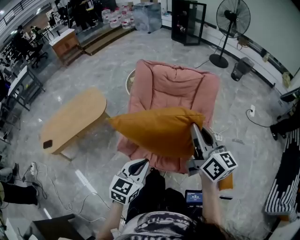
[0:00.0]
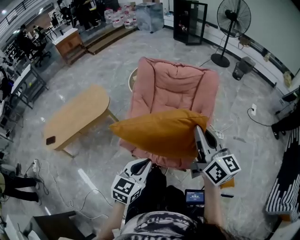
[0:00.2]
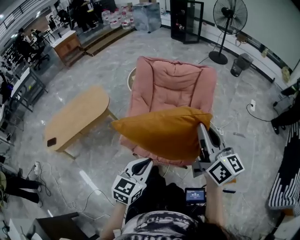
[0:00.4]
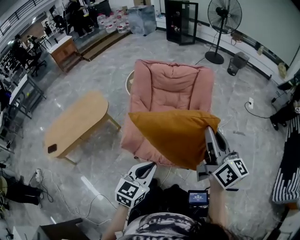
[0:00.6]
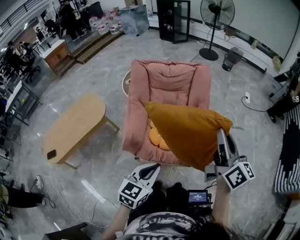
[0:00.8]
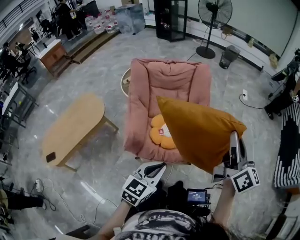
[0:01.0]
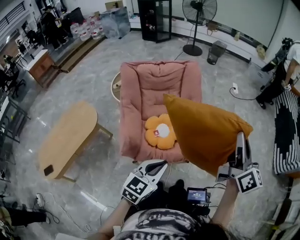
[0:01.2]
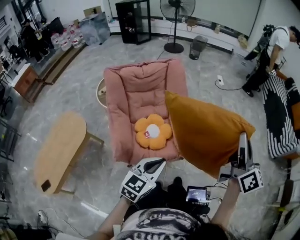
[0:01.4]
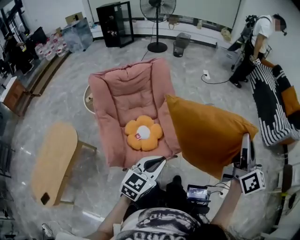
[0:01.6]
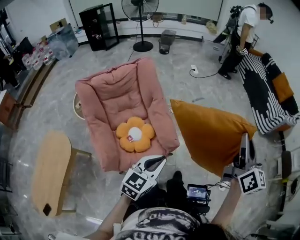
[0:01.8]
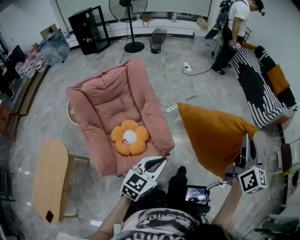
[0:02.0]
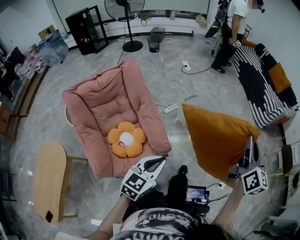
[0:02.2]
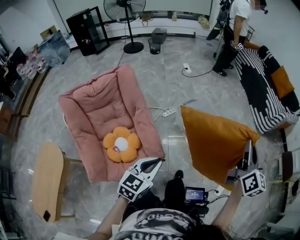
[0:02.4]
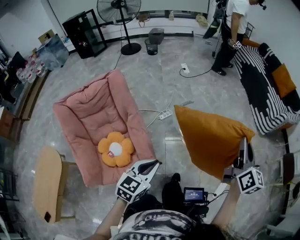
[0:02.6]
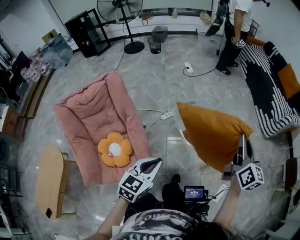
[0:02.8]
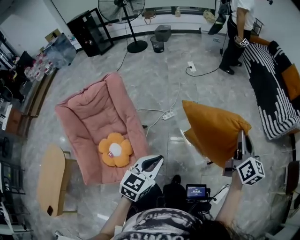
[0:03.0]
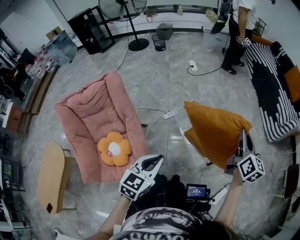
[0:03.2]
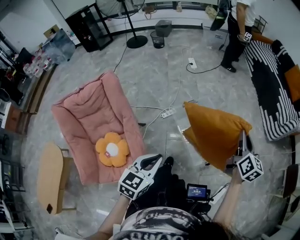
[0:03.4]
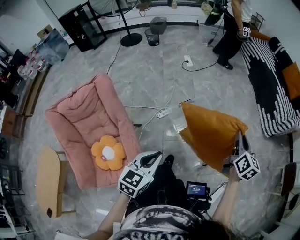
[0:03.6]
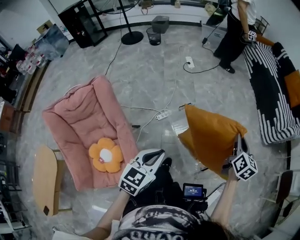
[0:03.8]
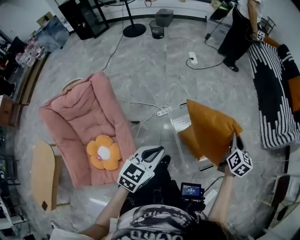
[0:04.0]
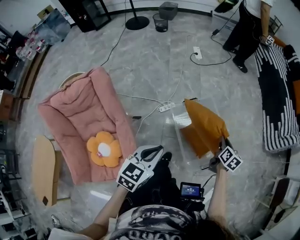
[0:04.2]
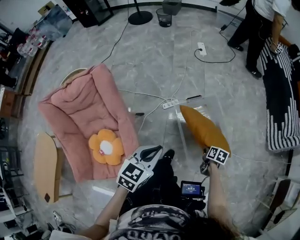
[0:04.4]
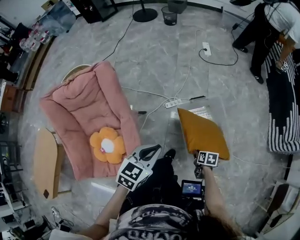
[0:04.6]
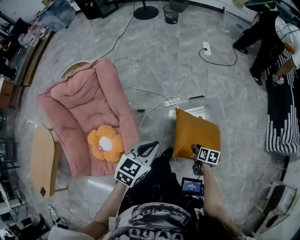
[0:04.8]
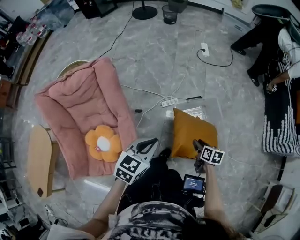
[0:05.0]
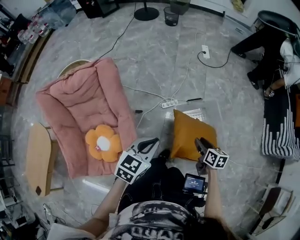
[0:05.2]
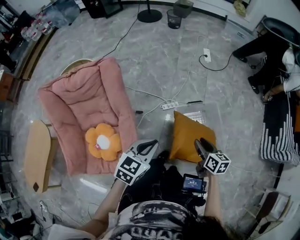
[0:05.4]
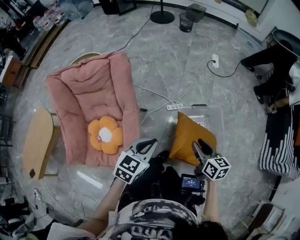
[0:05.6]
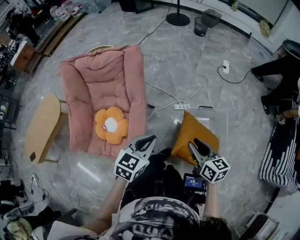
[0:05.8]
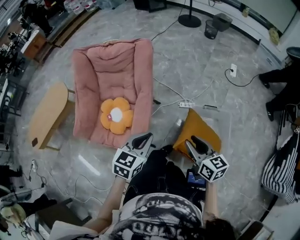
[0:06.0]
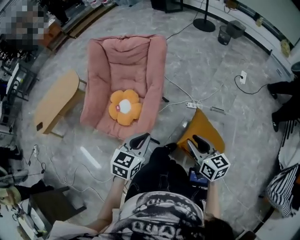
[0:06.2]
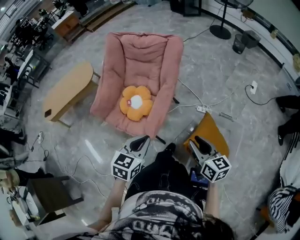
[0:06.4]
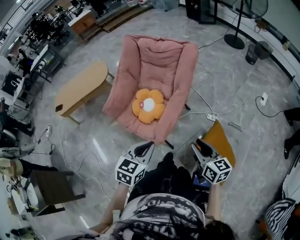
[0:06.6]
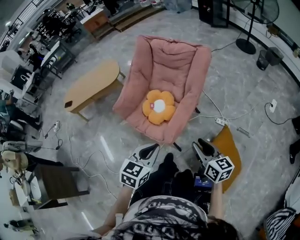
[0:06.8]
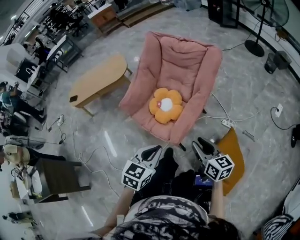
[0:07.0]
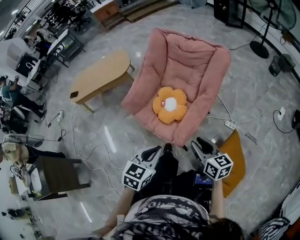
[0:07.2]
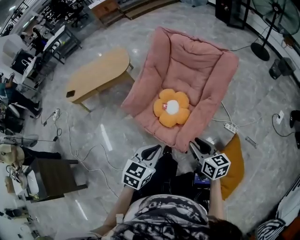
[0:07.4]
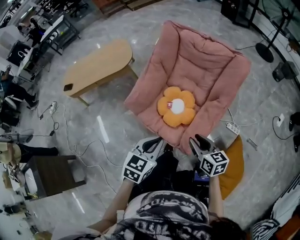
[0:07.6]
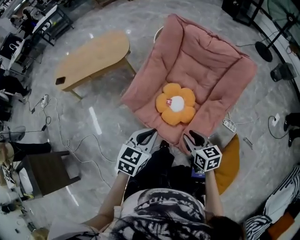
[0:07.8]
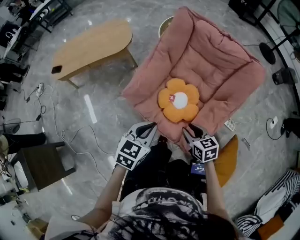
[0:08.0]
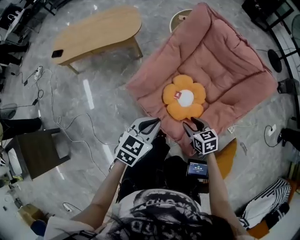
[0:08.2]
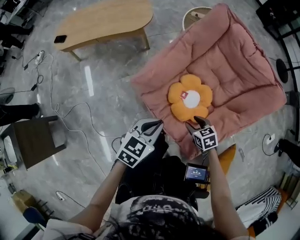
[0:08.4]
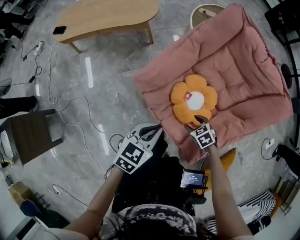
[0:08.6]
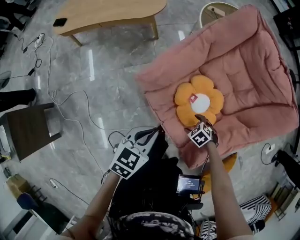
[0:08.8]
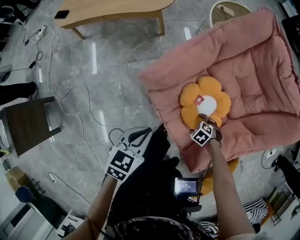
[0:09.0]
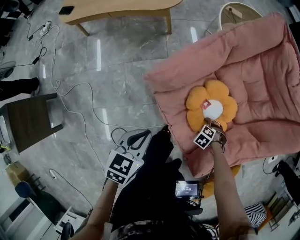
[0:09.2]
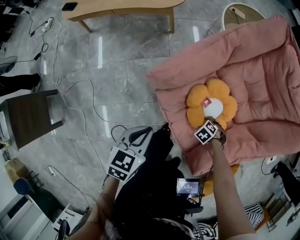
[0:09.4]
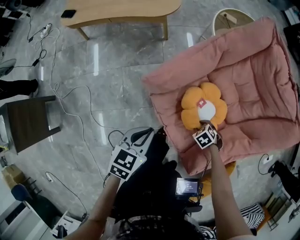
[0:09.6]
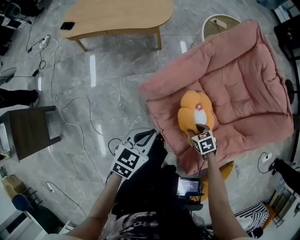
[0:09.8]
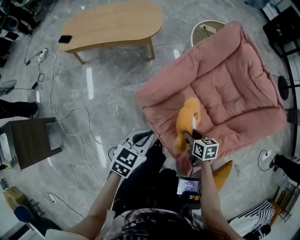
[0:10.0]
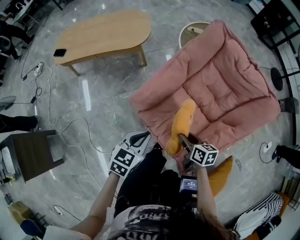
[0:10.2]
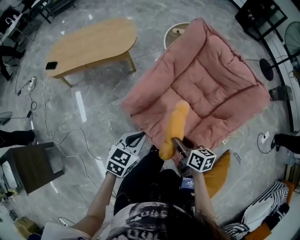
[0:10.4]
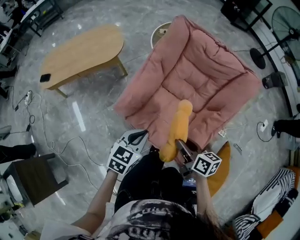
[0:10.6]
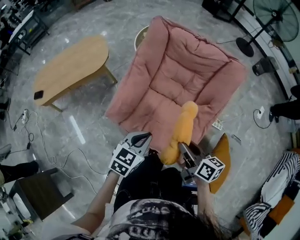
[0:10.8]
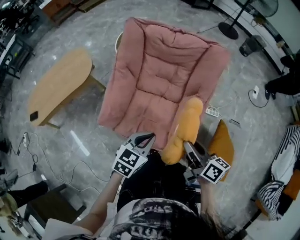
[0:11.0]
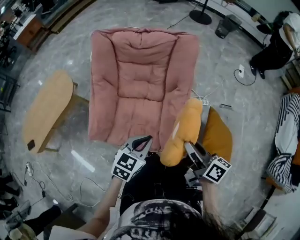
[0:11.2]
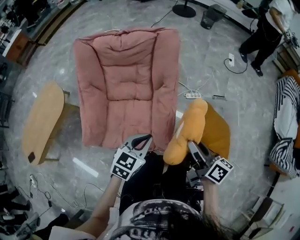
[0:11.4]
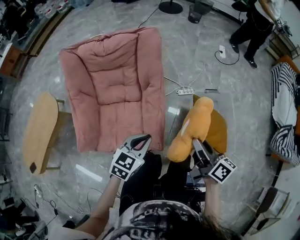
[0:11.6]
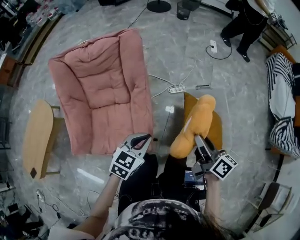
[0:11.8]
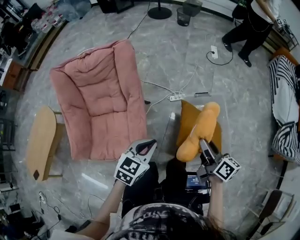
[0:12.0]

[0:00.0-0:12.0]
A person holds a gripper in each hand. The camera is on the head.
0.0 to 1.6 s: The left gripper ends up approximately 10 cm from where it was, and rotates some 40 degrees. The right gripper moves roughly 30 cm, and turns by about 60 degrees.
1.6 to 3.0 s: Both grippers move forward and to the right, some 35 cm.
3.0 to 4.4 s: The right gripper goes approximately 40 cm downward, and tips its fingers downward by some 60 degrees. The left gripper travels forward and downward by roughly 20 cm.
4.4 to 6.0 s: The left gripper shifts by some 10 cm, and rotates roughly 30 degrees. The right gripper moves upward, approximately 25 cm, and tips its fingers upward by some 40 degrees.
6.0 to 7.6 s: The right gripper moves about 30 cm, and turns by some 30 degrees; the left gripper ends up some 30 cm from where it was, and rotates approximately 30 degrees.
7.6 to 9.0 s: The left gripper changes place by roughly 25 cm, and changes its angle by some 30 degrees. The right gripper shifts roughly 35 cm downward, angles its fingers downward, by approximately 50 degrees, and opens.
9.0 to 10.4 s: The left gripper travels upward by approximately 10 cm. The right gripper is displaced upward by approximately 30 cm, tips its fingers upward by some 50 degrees, and closes its fingers.
10.4 to 12.0 s: Both grippers are carried approximately 50 cm. The right gripper changes its angle by about 70 degrees. Meanwhile the left gripper changes its angle by approximately 50 degrees.

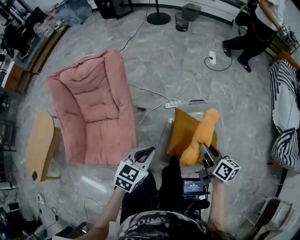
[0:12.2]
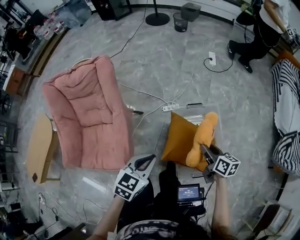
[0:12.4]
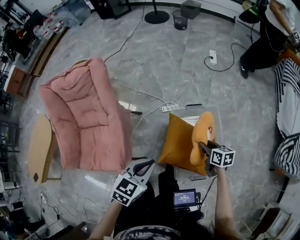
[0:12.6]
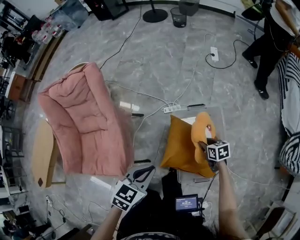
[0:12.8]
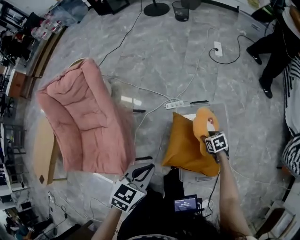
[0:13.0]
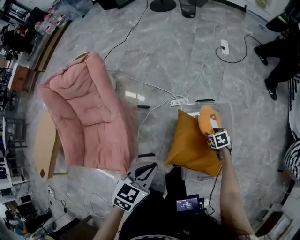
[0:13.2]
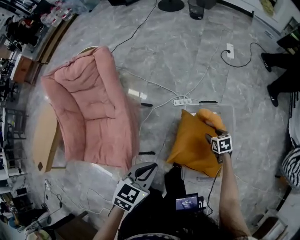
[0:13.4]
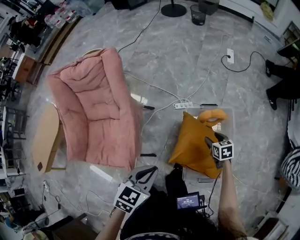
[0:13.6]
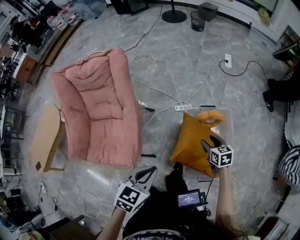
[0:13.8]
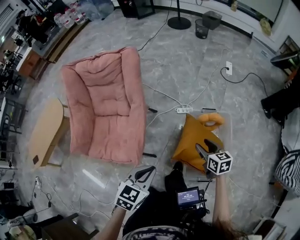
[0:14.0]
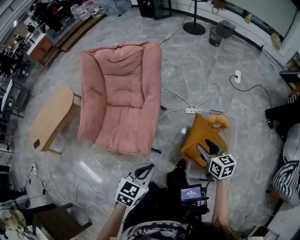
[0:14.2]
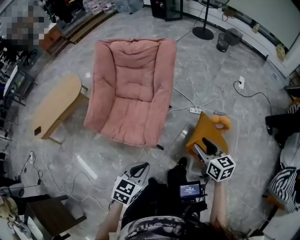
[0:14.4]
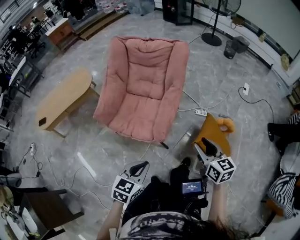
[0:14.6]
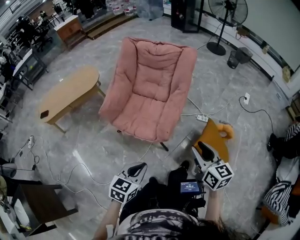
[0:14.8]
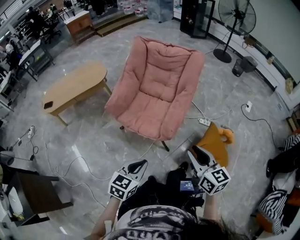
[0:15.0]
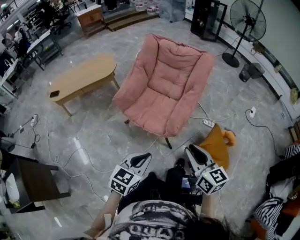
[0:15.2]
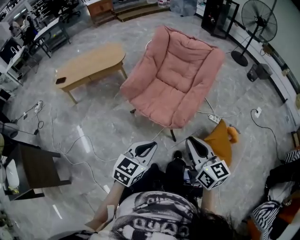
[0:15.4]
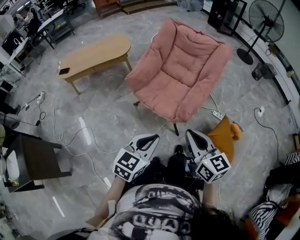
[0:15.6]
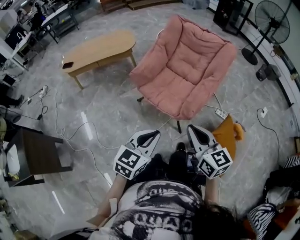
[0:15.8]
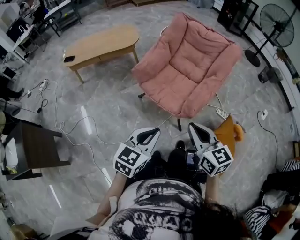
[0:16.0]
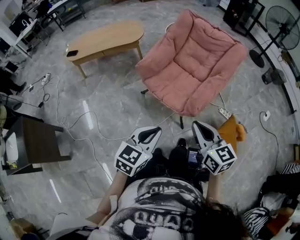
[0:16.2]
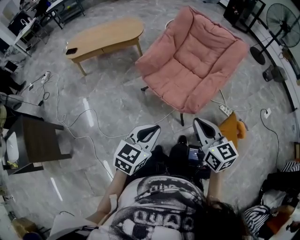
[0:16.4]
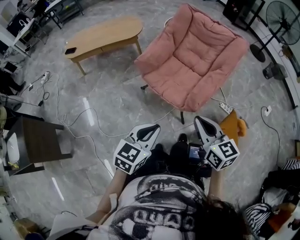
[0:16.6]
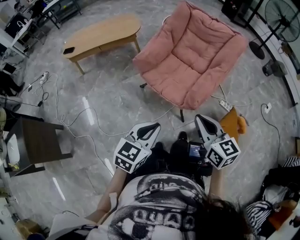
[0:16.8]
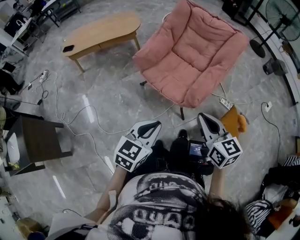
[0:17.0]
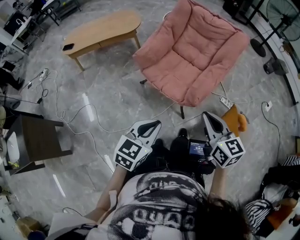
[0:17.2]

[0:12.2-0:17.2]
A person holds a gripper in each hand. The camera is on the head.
12.2 to 13.8 s: The left gripper reaches roughly 10 cm to the right, then returns. Meanwhile the right gripper travels downward and forward by roughly 20 cm, rotates some 40 degrees, and opens.
13.8 to 15.6 s: The left gripper changes place by approximately 40 cm, and swivels approximately 40 degrees. The right gripper shifts by roughly 60 cm, angles its fingers upward, by some 40 degrees, and closes its fingers.
15.6 to 17.2 s: The right gripper changes place by about 5 cm.

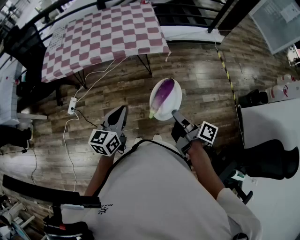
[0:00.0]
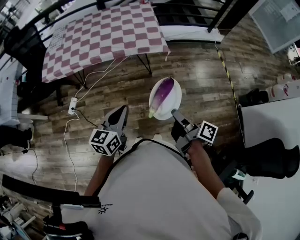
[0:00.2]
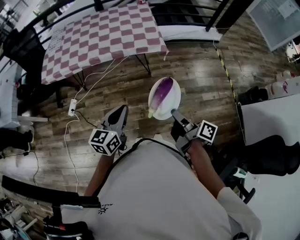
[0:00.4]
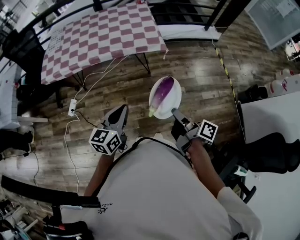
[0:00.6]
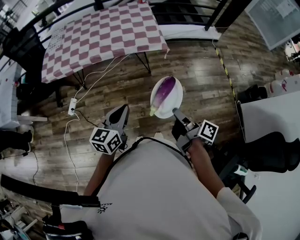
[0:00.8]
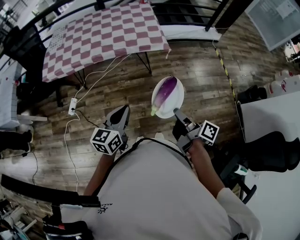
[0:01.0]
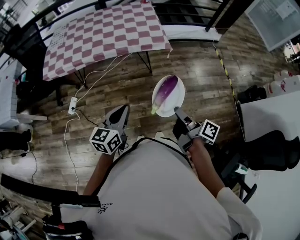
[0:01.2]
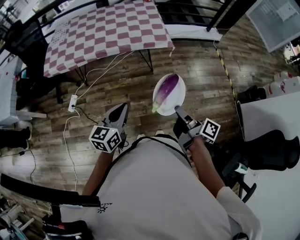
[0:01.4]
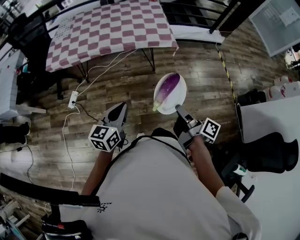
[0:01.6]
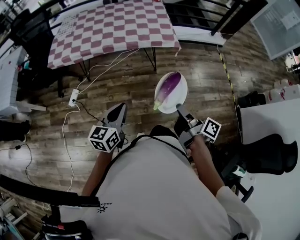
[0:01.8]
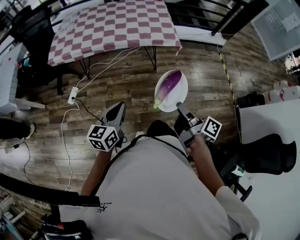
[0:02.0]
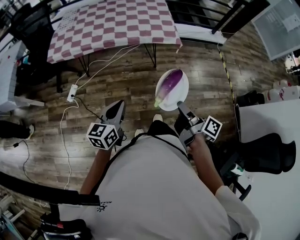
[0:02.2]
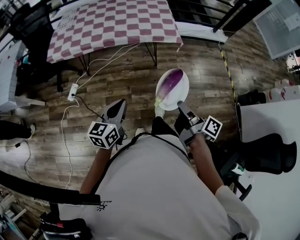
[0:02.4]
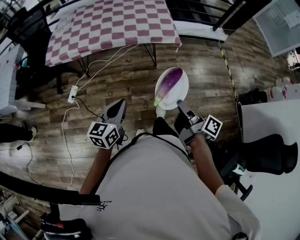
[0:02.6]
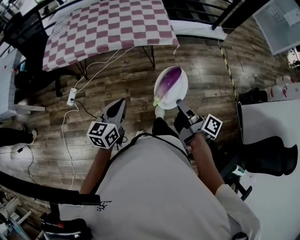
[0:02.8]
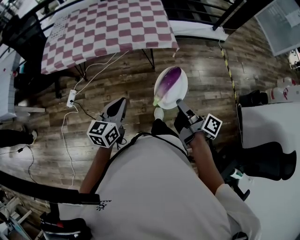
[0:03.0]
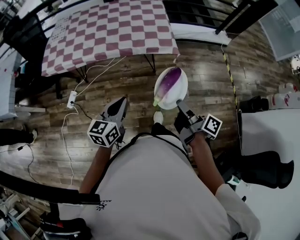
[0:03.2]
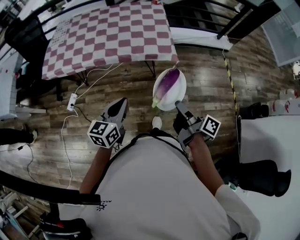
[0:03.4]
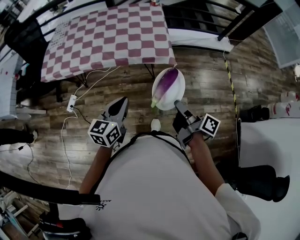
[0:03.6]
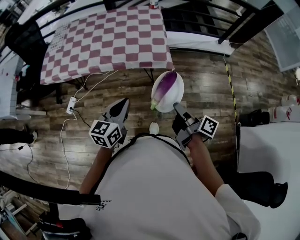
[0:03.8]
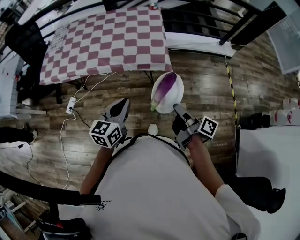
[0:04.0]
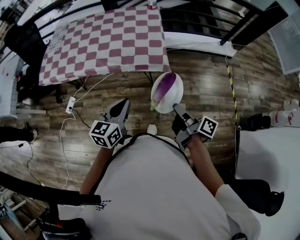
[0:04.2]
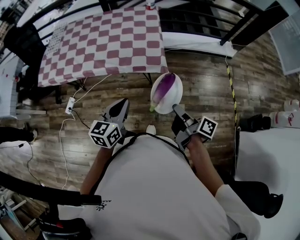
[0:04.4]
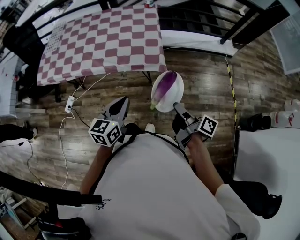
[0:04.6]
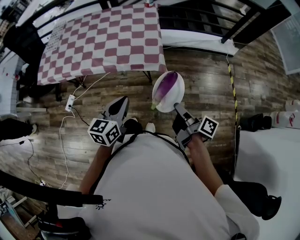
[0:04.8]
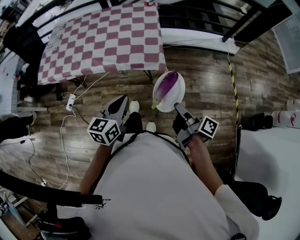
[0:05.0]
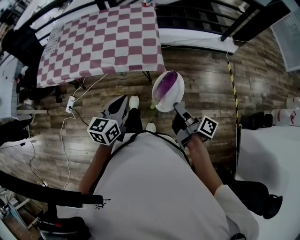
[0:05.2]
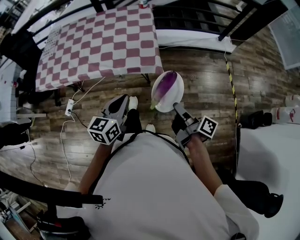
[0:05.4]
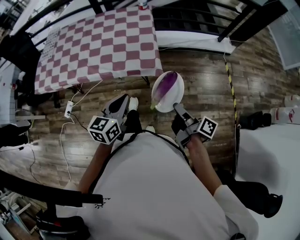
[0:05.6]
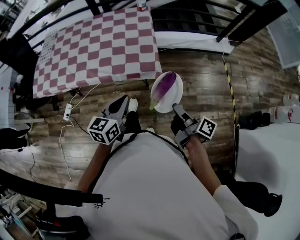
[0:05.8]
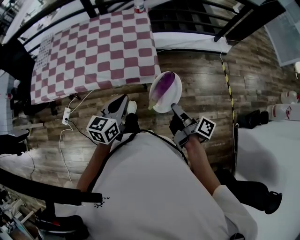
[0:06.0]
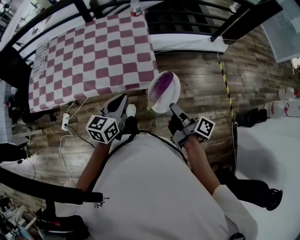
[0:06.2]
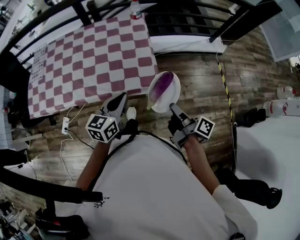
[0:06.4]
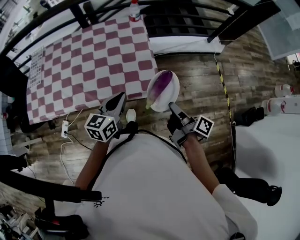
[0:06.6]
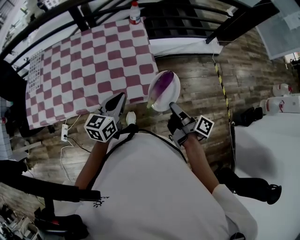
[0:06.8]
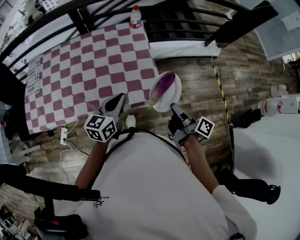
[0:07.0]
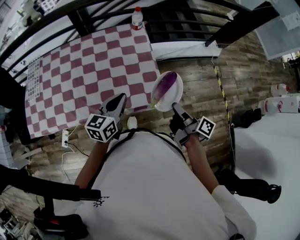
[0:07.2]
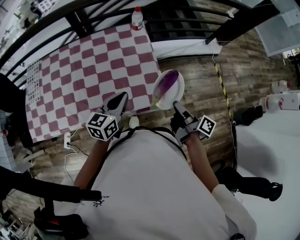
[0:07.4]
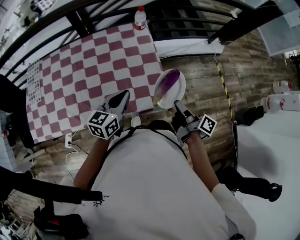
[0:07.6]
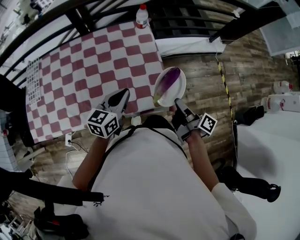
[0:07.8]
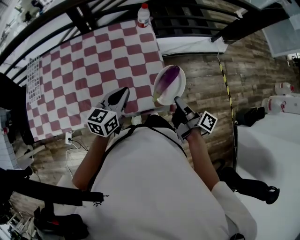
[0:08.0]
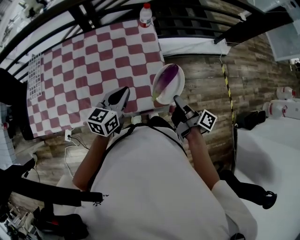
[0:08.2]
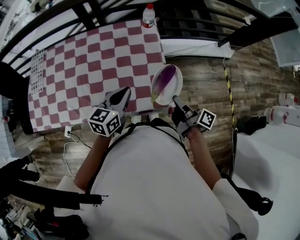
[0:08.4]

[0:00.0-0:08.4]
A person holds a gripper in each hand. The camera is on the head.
0.0 to 1.4 s: The left gripper shifts by some 5 cm.
2.8 to 4.2 s: The left gripper ends up approximately 25 cm from where it was.
4.2 to 5.6 s: The left gripper moves roughly 10 cm.
5.6 to 7.0 s: The left gripper changes place by some 25 cm.
7.0 to 8.4 s: The left gripper shifts by roughly 10 cm.
